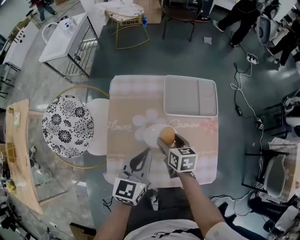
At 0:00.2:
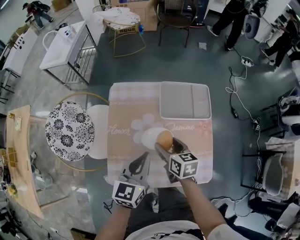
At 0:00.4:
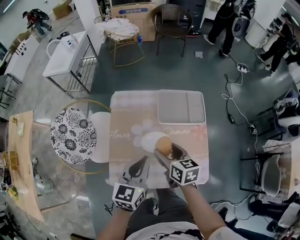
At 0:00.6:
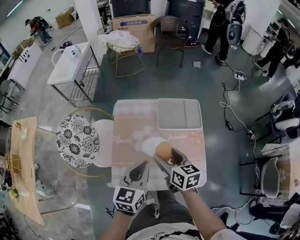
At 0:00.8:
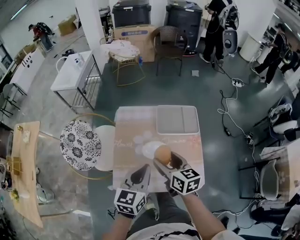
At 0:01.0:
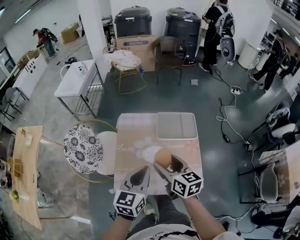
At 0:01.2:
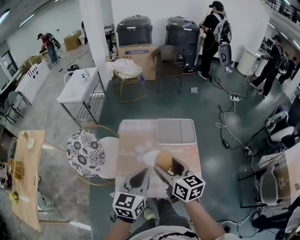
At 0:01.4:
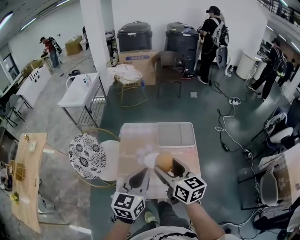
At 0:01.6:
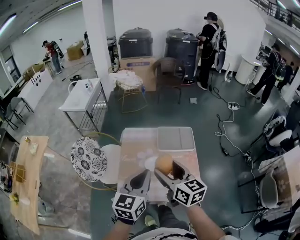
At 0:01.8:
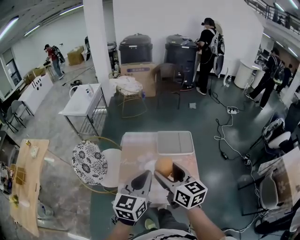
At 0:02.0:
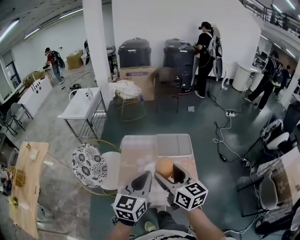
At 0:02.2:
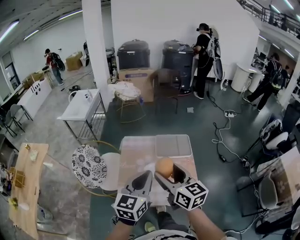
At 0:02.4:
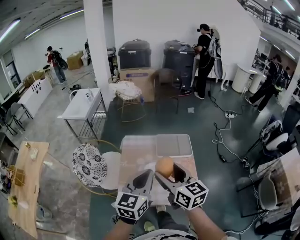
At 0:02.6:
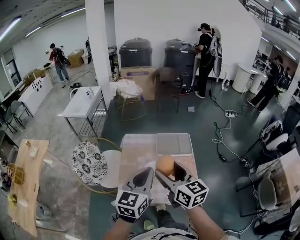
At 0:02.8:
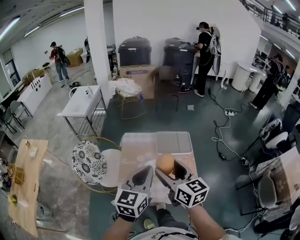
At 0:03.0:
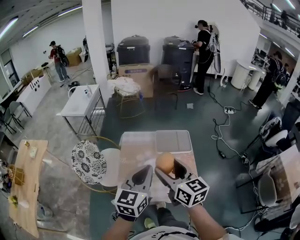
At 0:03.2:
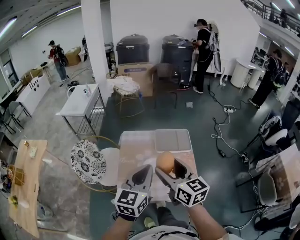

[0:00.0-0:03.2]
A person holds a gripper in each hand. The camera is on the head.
0:00.0 to 0:01.6: The left gripper goes about 25 cm upward and backward. The right gripper is displaced upward by approximately 35 cm, and tilts its fingers approximately 30 degrees upward.
0:01.6 to 0:03.2: The grippers make only small movements.

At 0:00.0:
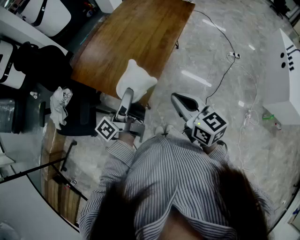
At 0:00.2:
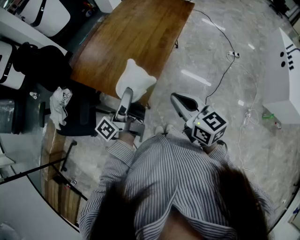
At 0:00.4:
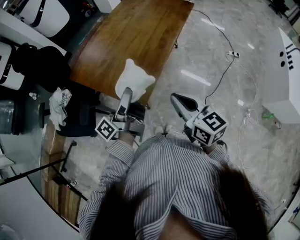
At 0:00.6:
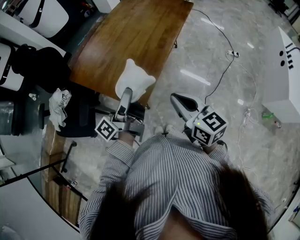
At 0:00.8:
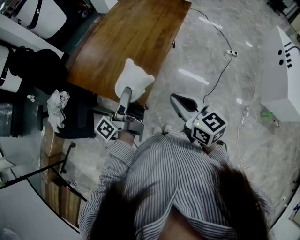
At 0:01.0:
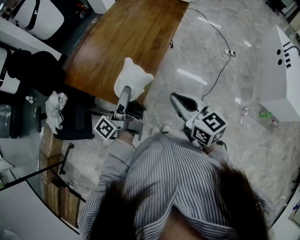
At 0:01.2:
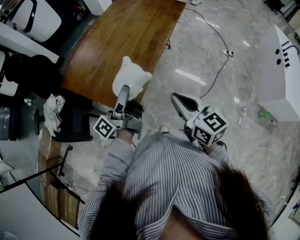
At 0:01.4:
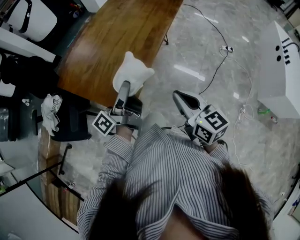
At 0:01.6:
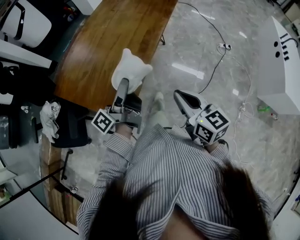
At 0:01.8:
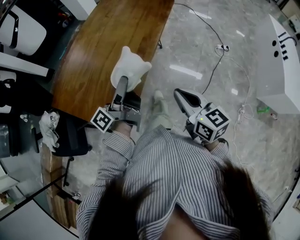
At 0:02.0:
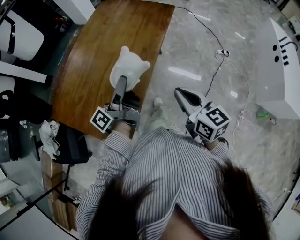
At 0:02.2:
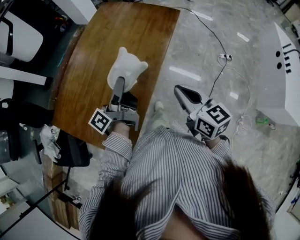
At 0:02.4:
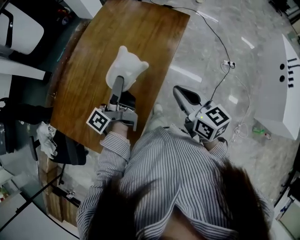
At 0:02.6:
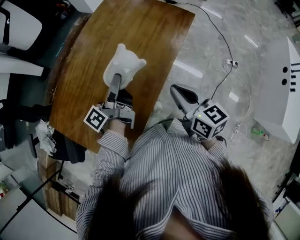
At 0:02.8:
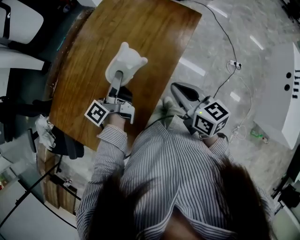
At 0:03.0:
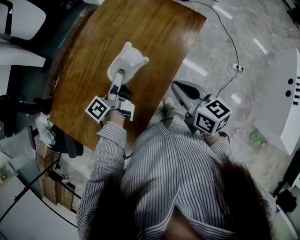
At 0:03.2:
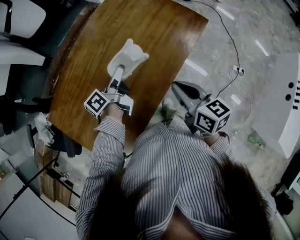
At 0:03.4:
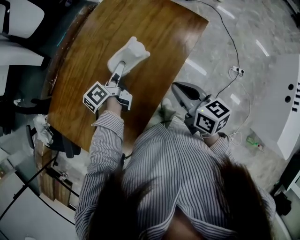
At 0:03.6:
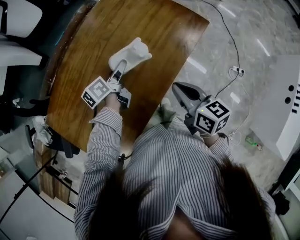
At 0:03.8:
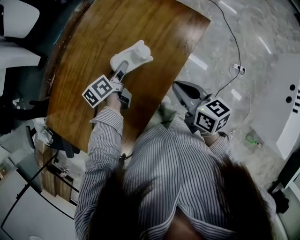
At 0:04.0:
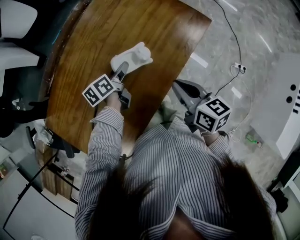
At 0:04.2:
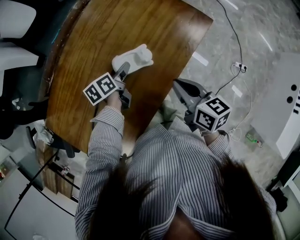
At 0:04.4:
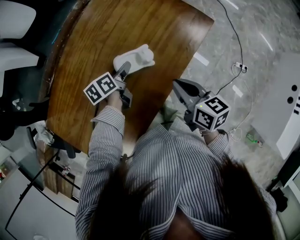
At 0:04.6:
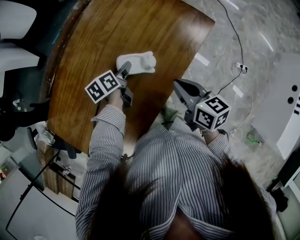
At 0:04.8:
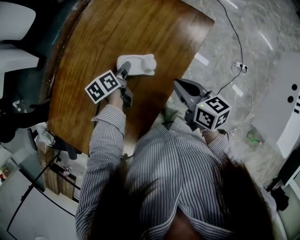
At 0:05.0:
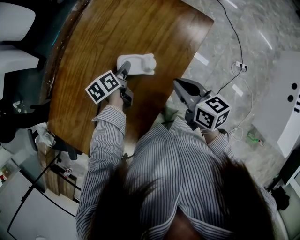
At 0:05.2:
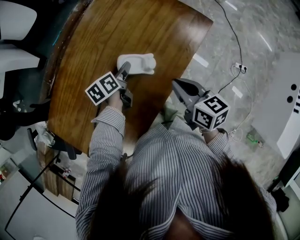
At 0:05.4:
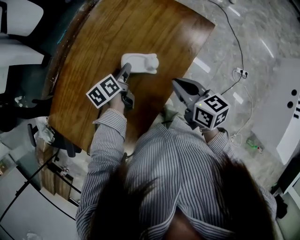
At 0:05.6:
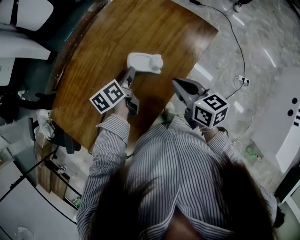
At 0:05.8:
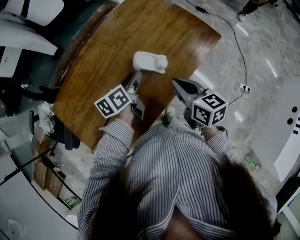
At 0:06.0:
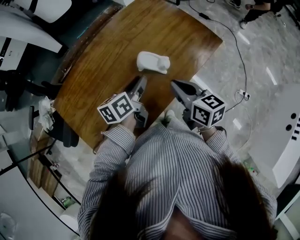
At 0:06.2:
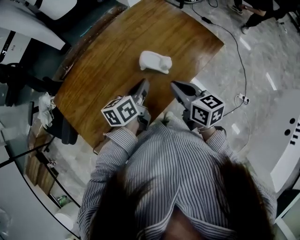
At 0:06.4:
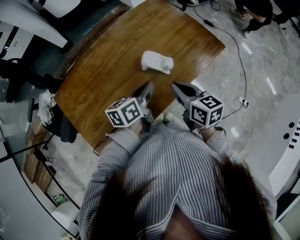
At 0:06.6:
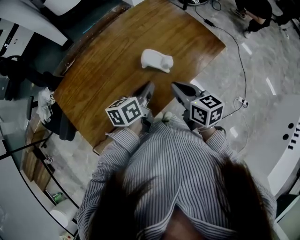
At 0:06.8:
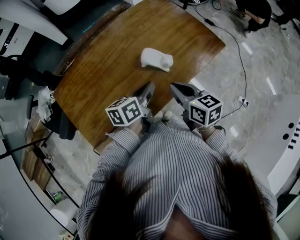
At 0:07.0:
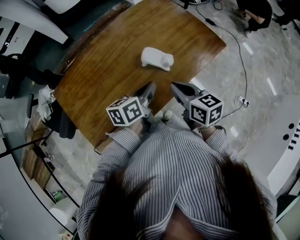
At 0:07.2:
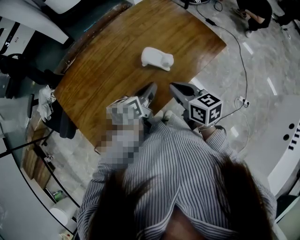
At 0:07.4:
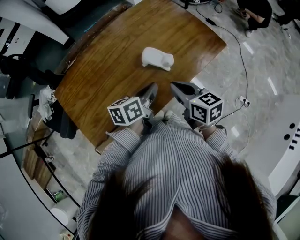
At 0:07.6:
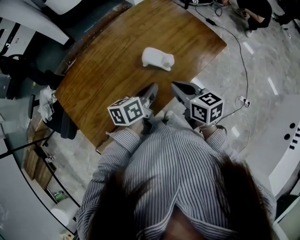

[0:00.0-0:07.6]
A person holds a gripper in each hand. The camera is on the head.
0:00.0 to 0:01.6: The left gripper heads forward and to the right, covering roughly 15 cm, while the right gripper is displaced to the right and forward by approximately 10 cm.
0:01.6 to 0:03.0: Both grippers move forward, approximately 35 cm. The left gripper changes its angle by approximately 20 degrees.
0:03.0 to 0:04.6: The right gripper heads forward and downward, covering approximately 10 cm. Meanwhile the left gripper is displaced downward and forward by some 15 cm, and tips its fingers downward by about 40 degrees.
0:04.6 to 0:06.0: The right gripper moves to the left and upward, approximately 10 cm; the left gripper travels upward and backward by roughly 15 cm, changes its angle by approximately 20 degrees, and closes its fingers.
0:06.0 to 0:07.6: The left gripper heads backward, covering about 5 cm, and closes.

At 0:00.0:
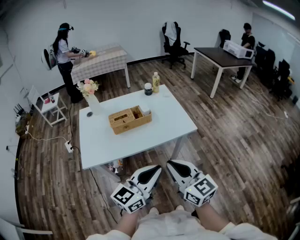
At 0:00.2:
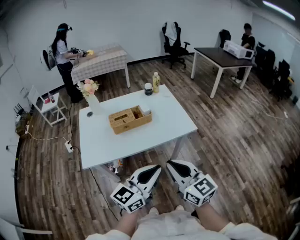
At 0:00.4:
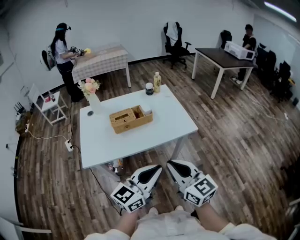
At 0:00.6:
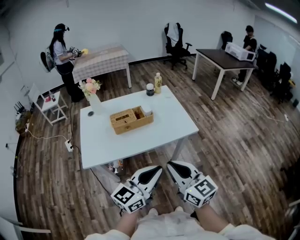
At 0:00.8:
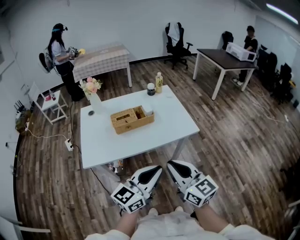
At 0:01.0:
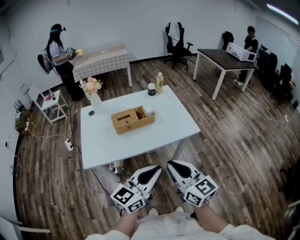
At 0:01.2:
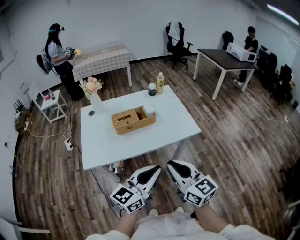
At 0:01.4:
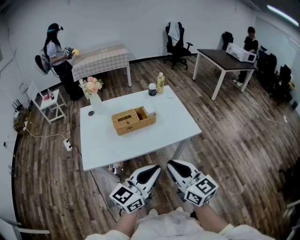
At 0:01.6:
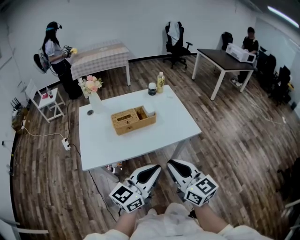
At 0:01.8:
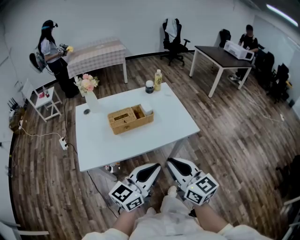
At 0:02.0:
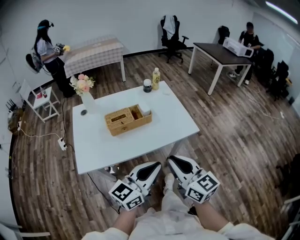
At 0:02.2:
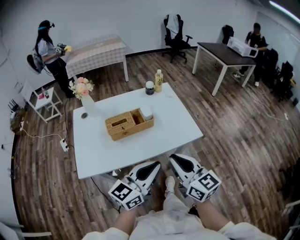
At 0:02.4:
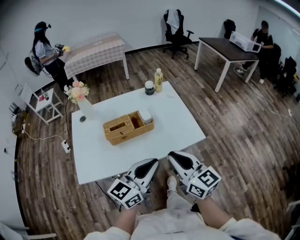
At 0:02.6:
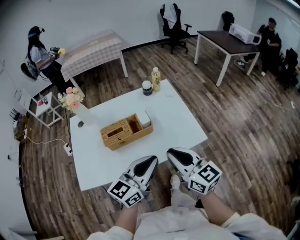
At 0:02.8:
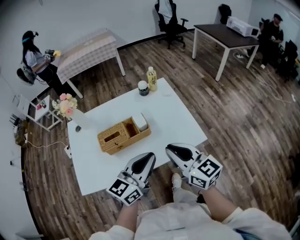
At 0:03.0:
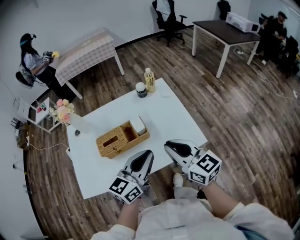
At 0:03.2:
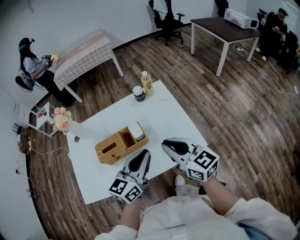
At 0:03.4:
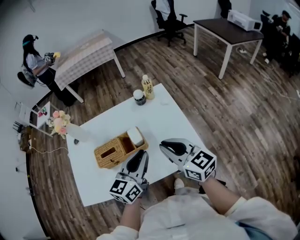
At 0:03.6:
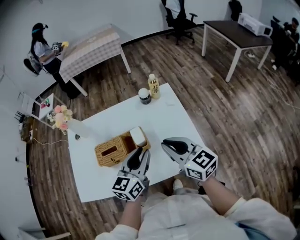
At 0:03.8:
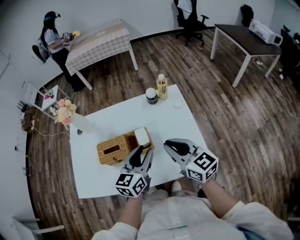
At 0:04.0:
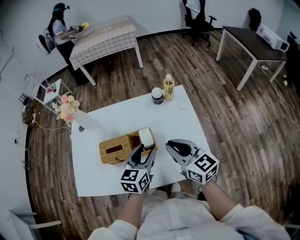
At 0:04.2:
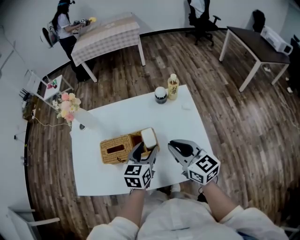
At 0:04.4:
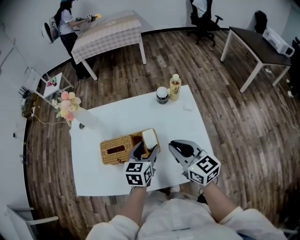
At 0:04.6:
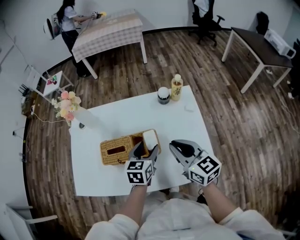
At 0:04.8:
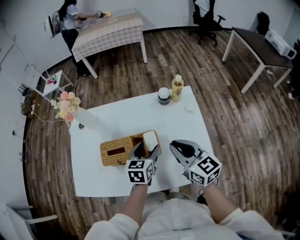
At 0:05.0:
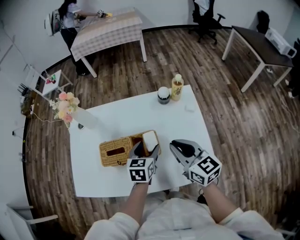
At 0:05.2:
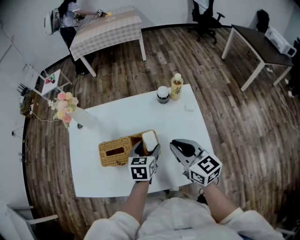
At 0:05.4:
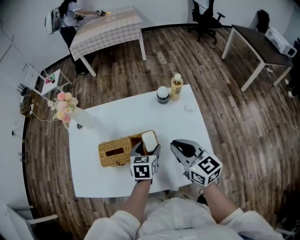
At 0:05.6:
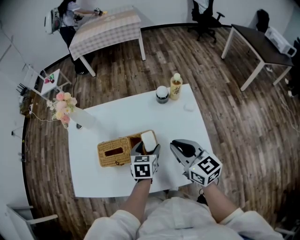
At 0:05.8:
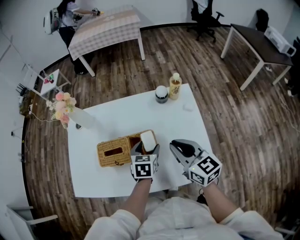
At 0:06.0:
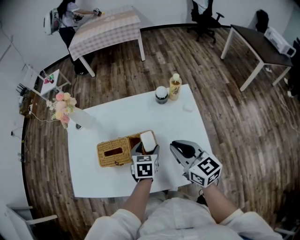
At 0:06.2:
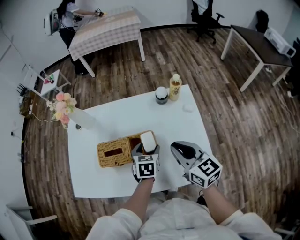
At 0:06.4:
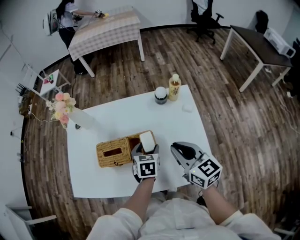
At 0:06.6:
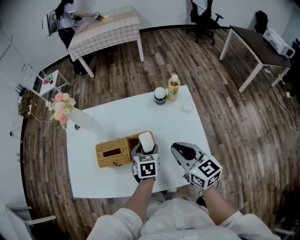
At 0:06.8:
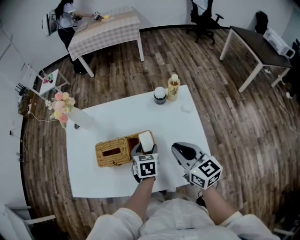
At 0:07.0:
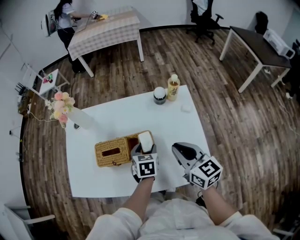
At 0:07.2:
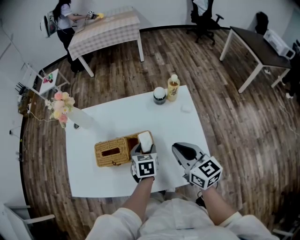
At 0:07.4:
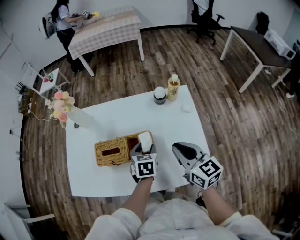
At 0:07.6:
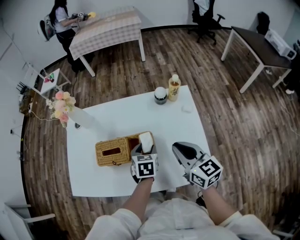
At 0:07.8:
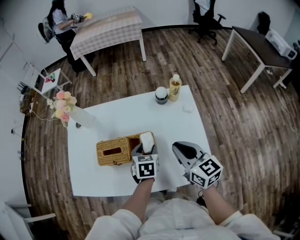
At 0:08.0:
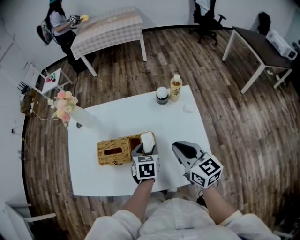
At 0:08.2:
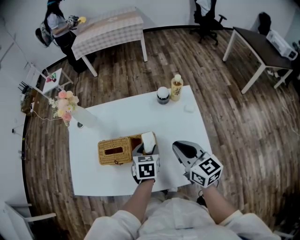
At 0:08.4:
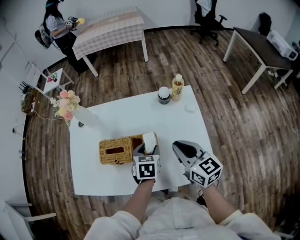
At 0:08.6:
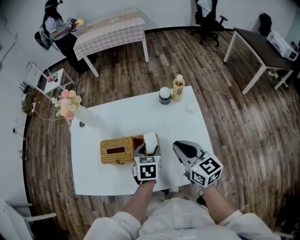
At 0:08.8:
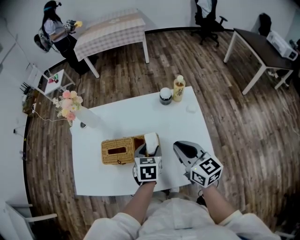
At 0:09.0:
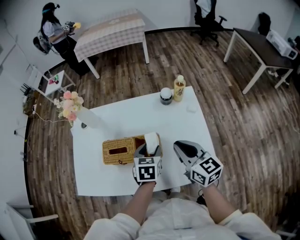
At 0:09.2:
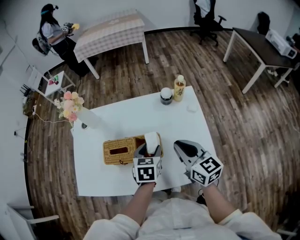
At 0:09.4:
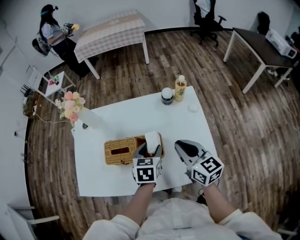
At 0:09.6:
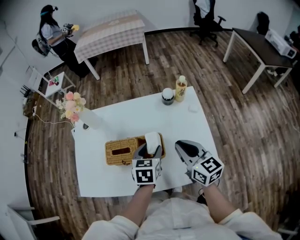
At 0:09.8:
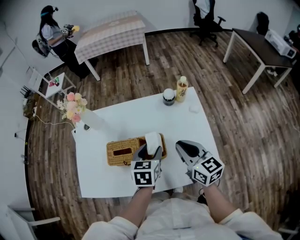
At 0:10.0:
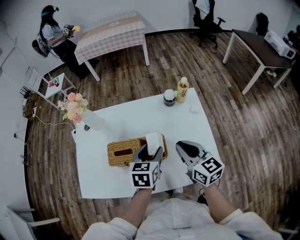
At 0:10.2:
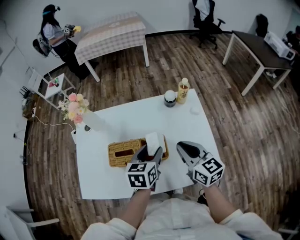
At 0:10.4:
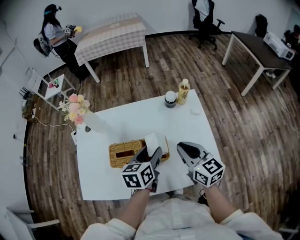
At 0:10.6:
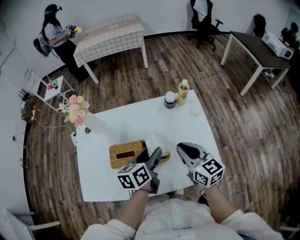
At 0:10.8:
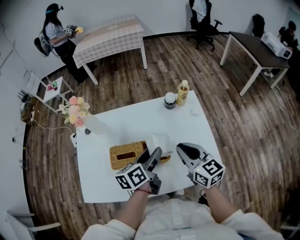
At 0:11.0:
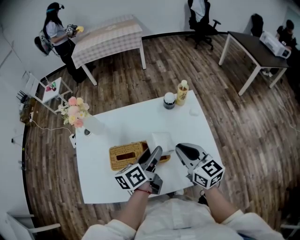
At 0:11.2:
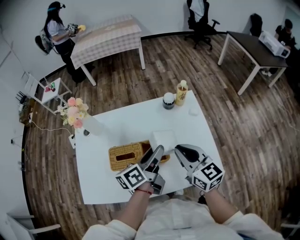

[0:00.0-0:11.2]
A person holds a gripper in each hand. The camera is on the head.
0:00.0 to 0:01.6: The left gripper changes place by some 5 cm.
0:01.6 to 0:03.2: Both grippers travel together forward, about 30 cm.
0:03.2 to 0:04.8: The right gripper goes some 15 cm forward and downward. Meanwhile the left gripper shifts approximately 20 cm forward and downward, swivels approximately 40 degrees, and opens up.
0:04.8 to 0:06.4: The left gripper travels downward by about 5 cm.
0:06.4 to 0:08.0: The grippers stay close to where they were, moving slightly.
0:08.0 to 0:09.6: The left gripper goes roughly 5 cm upward.
0:09.6 to 0:11.2: The left gripper heads upward, covering about 5 cm, and tips its fingers upward by roughly 30 degrees.

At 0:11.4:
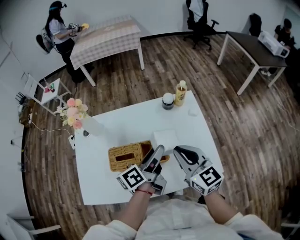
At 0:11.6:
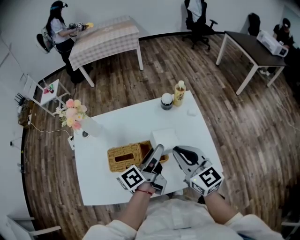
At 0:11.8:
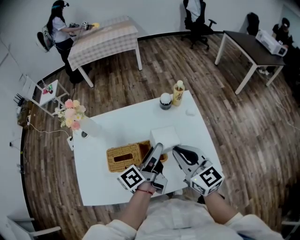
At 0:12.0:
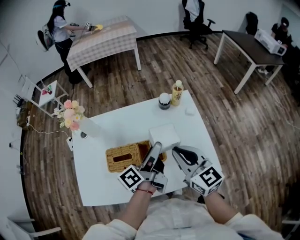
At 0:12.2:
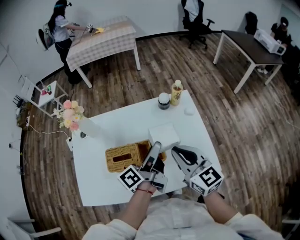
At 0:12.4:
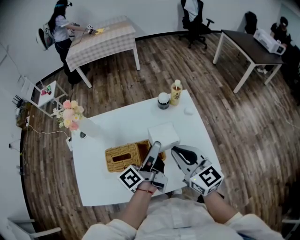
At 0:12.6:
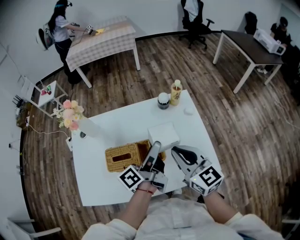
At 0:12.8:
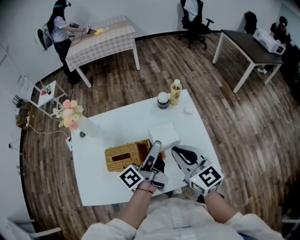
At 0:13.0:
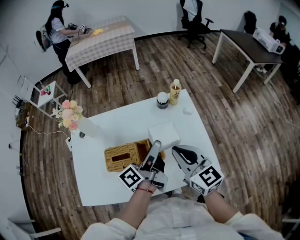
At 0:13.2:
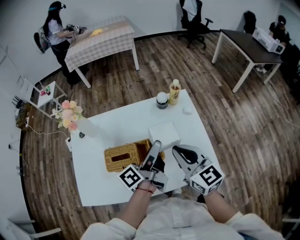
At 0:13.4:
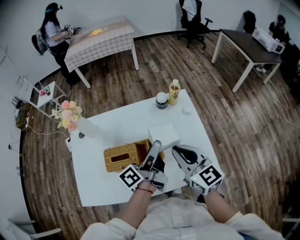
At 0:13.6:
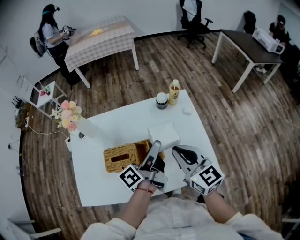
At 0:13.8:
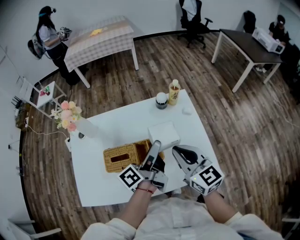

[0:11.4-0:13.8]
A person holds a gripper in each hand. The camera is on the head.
0:11.4 to 0:12.6: The grippers move only a little.
0:12.6 to 0:13.8: Both grippers stay put.
